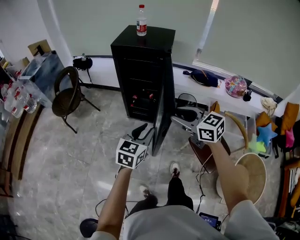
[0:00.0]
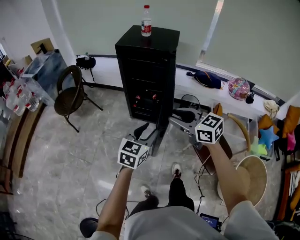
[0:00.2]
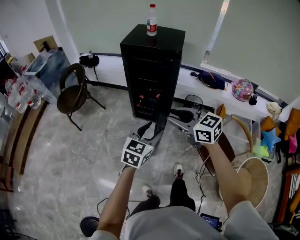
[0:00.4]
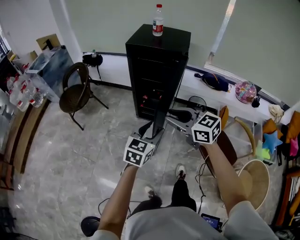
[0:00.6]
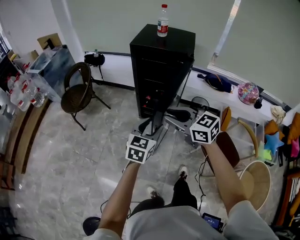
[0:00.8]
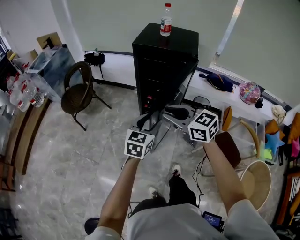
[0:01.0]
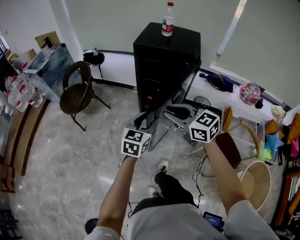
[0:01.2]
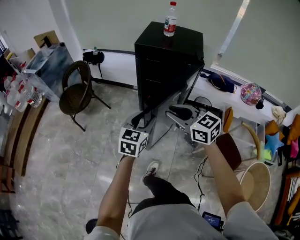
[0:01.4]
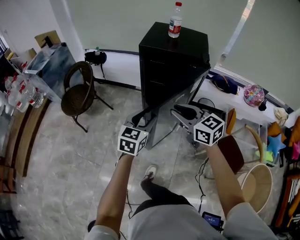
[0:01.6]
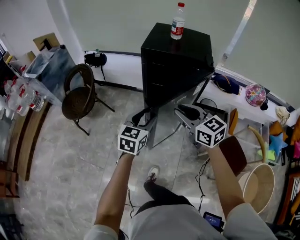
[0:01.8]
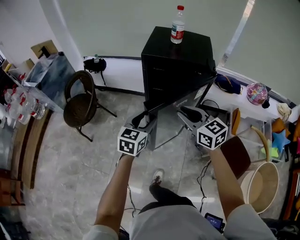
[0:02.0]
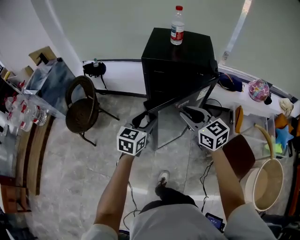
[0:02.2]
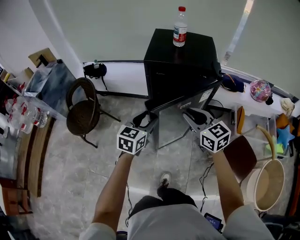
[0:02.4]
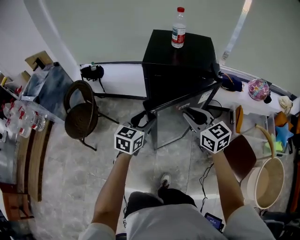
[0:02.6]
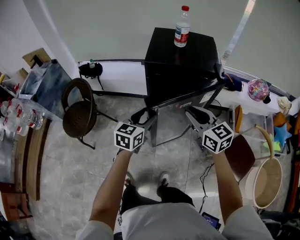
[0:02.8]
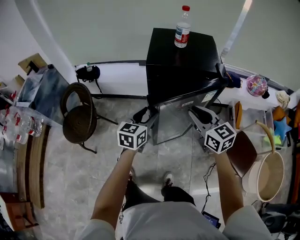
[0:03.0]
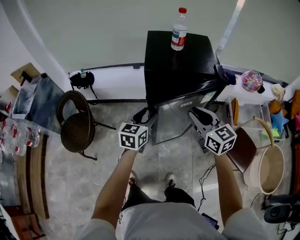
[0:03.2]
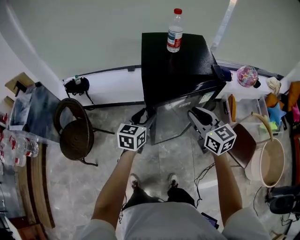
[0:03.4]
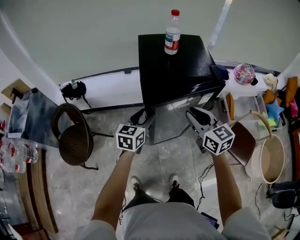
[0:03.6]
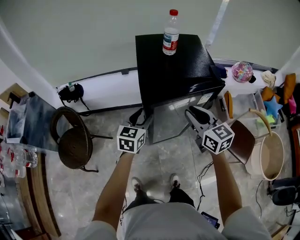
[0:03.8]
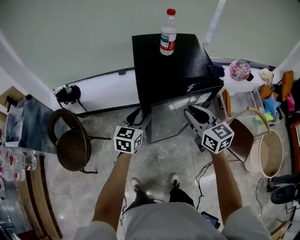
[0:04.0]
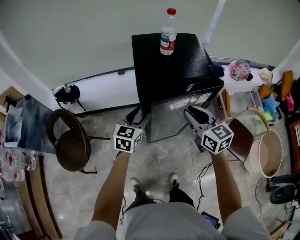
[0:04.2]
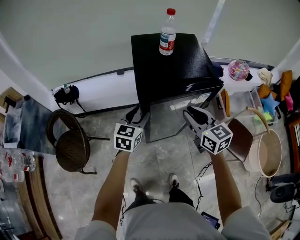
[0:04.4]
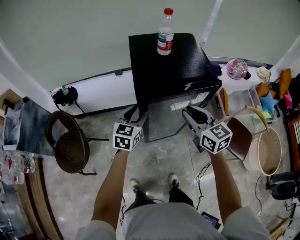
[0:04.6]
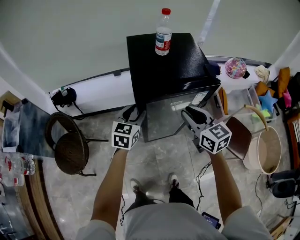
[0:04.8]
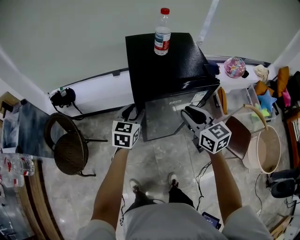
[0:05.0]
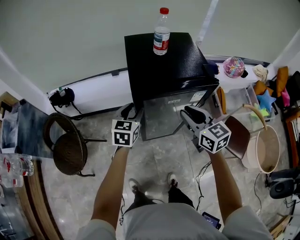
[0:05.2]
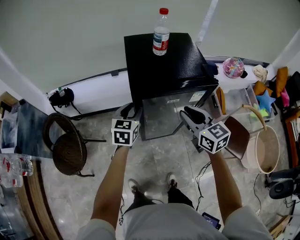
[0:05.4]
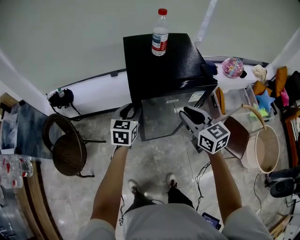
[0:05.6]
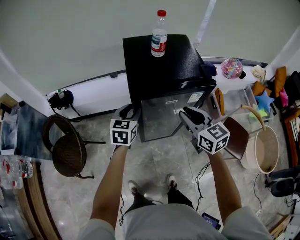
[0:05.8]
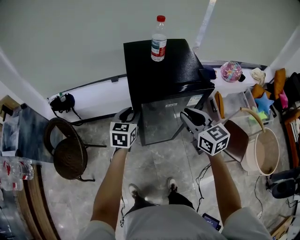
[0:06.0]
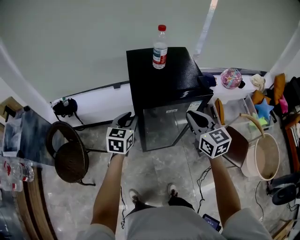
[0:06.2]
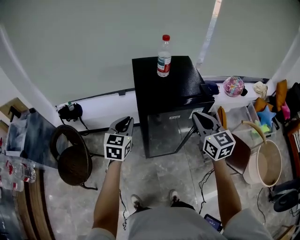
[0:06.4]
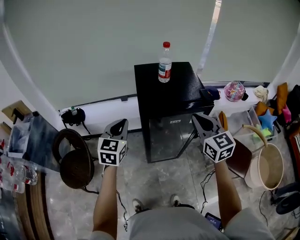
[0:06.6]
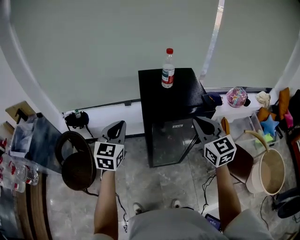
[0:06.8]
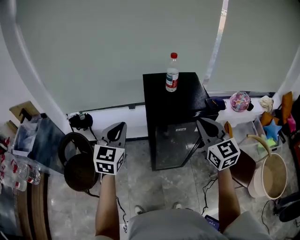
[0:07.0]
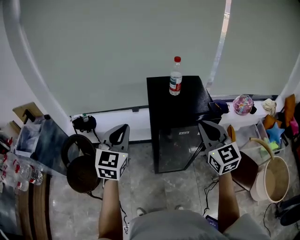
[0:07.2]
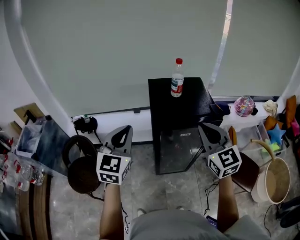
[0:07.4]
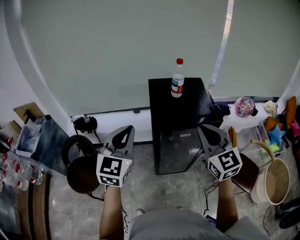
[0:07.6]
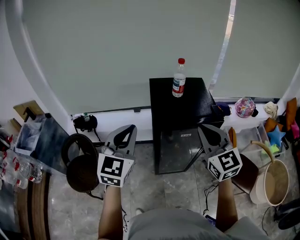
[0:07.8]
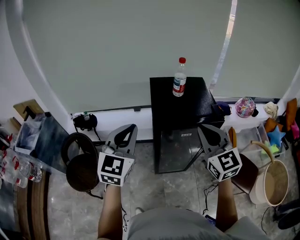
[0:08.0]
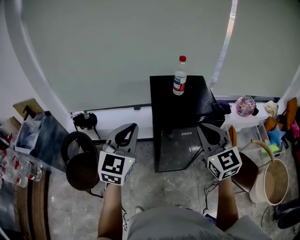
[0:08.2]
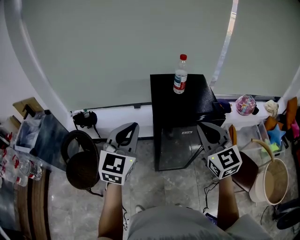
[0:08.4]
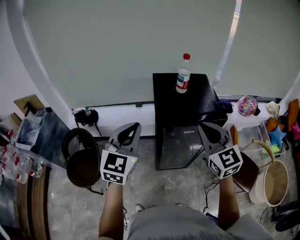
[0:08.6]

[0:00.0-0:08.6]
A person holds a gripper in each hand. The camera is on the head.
0:00.0 to 0:01.4: The right gripper travels to the left and forward by some 20 cm; the left gripper travels forward and to the left by some 20 cm.
0:01.4 to 0:02.8: The left gripper travels forward and to the left by about 20 cm, while the right gripper travels forward by approximately 15 cm, and turns by some 20 degrees.
0:02.8 to 0:04.4: The right gripper is displaced forward by roughly 5 cm. Meanwhile the left gripper moves forward, roughly 15 cm.
0:04.4 to 0:05.8: The grippers make only small movements.
0:05.8 to 0:07.2: The right gripper travels upward by about 15 cm, and turns by about 20 degrees. The left gripper heads upward and to the left, covering some 25 cm, rotates approximately 30 degrees, and closes its fingers.
0:07.2 to 0:08.6: There are only small adjustments of the grippers.

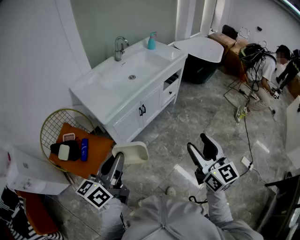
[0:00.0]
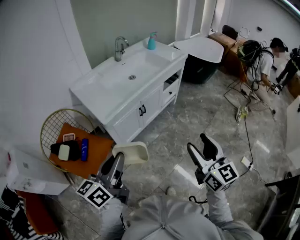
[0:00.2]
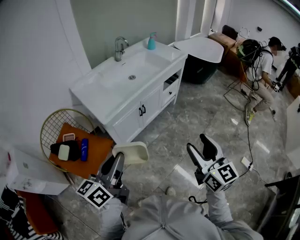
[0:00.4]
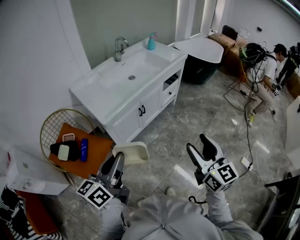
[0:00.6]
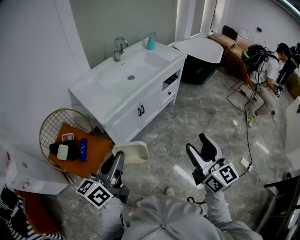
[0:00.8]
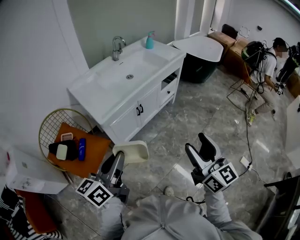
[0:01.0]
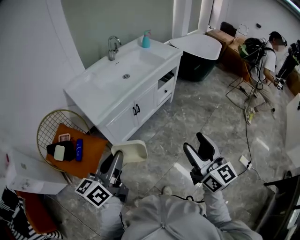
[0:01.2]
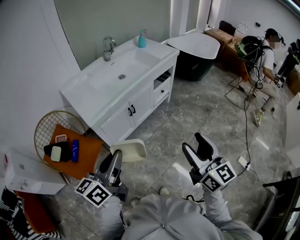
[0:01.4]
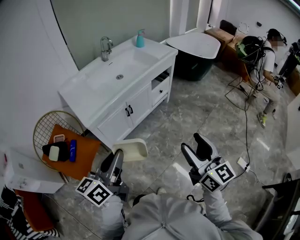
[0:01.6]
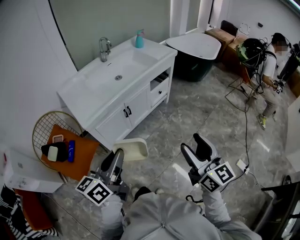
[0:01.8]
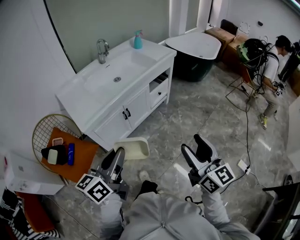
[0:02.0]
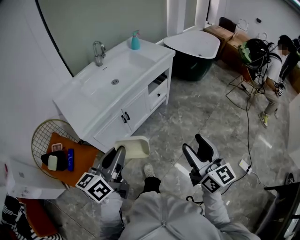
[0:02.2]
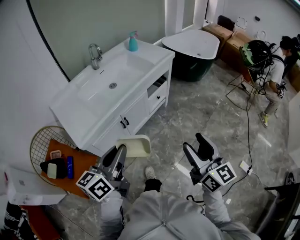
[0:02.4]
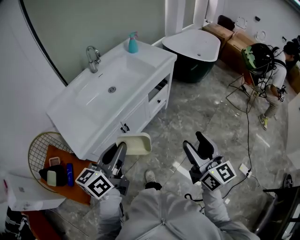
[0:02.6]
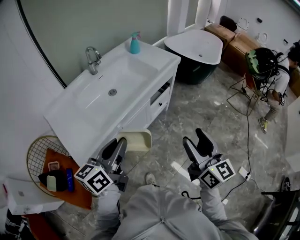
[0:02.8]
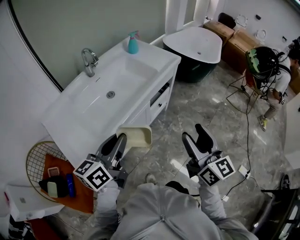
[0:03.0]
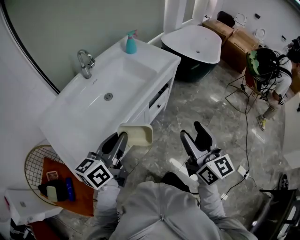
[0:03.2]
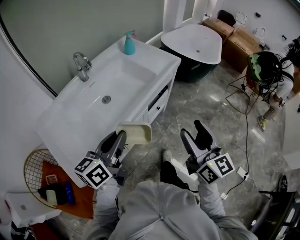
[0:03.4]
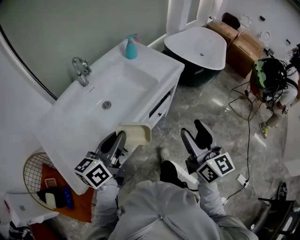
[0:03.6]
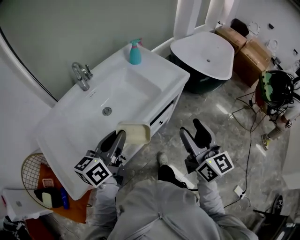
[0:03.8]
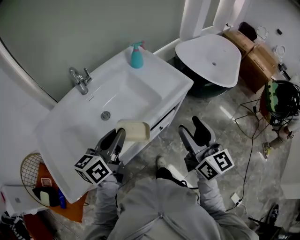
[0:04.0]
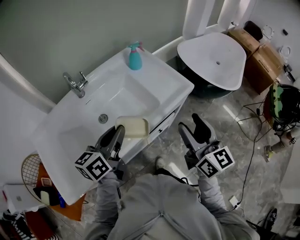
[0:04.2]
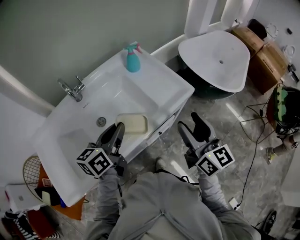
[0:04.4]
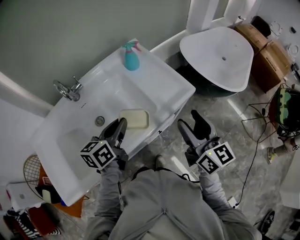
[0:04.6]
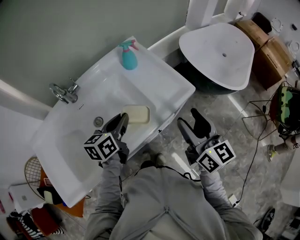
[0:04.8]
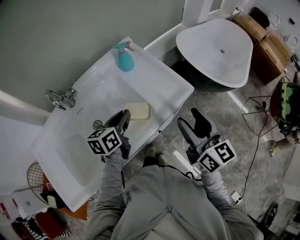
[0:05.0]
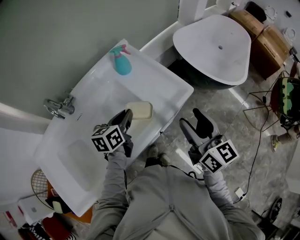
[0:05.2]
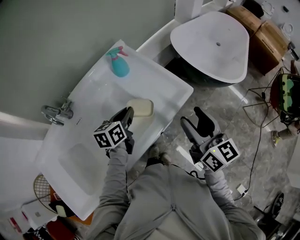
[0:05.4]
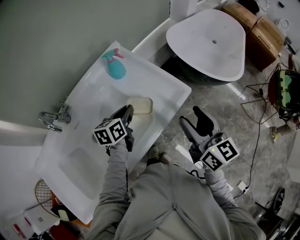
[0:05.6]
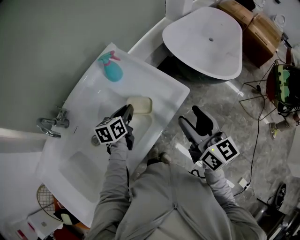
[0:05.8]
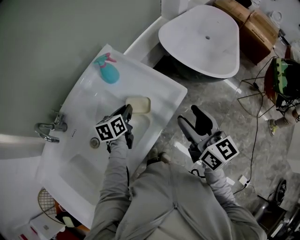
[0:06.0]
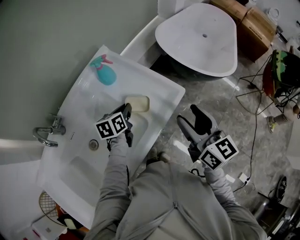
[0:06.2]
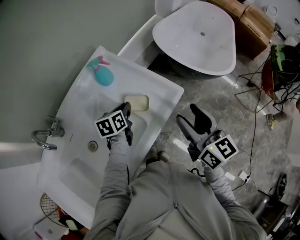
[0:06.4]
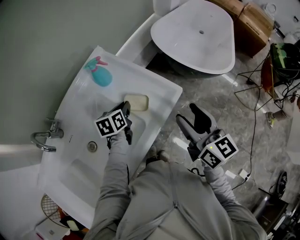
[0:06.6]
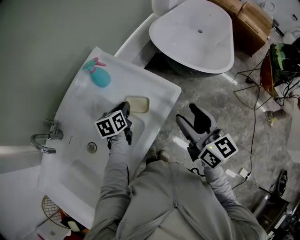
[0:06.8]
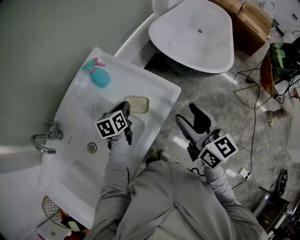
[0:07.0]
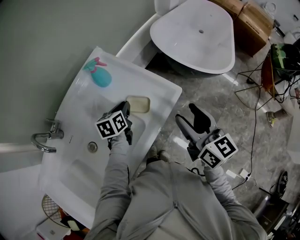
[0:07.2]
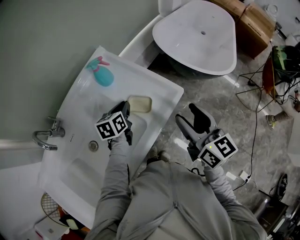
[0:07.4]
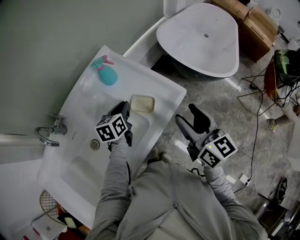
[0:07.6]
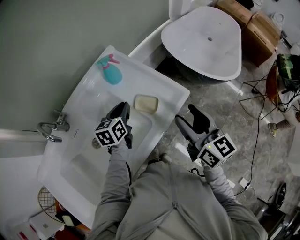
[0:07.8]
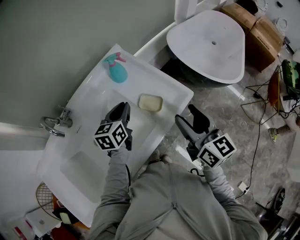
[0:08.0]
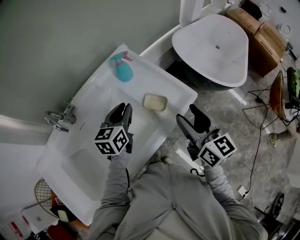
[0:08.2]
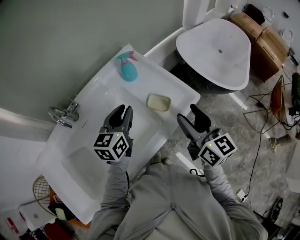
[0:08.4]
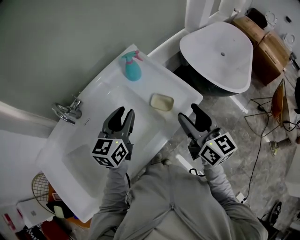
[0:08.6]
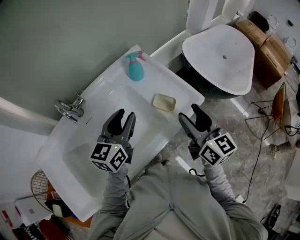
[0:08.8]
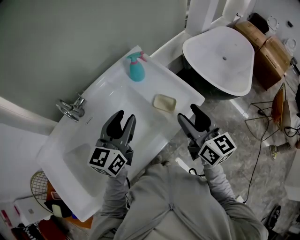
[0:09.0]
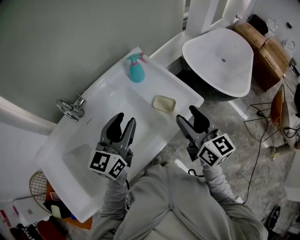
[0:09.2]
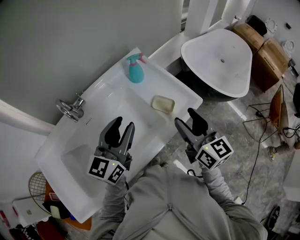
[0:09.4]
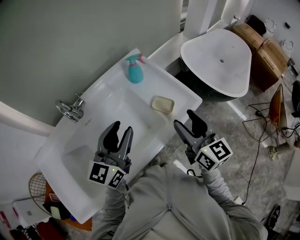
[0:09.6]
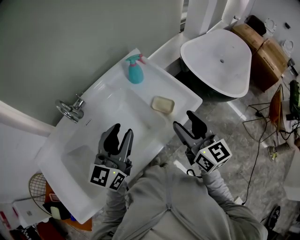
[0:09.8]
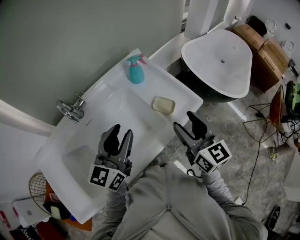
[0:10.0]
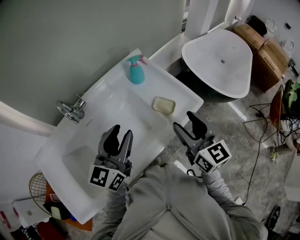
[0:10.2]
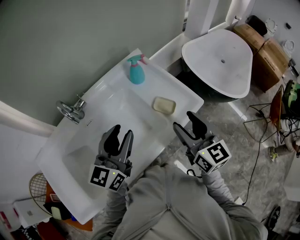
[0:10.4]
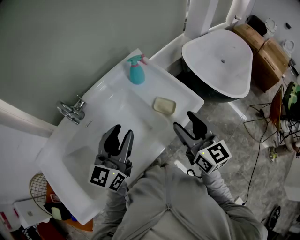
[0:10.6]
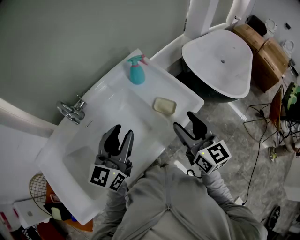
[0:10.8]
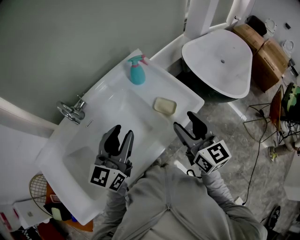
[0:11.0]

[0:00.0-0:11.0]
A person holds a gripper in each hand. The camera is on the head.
0:00.0 to 0:01.6: The two grippers go some 10 cm to the right.
0:01.6 to 0:03.2: Both grippers move forward, roughly 35 cm.
0:03.2 to 0:04.8: The grippers both shift forward by about 40 cm. The left gripper turns by roughly 20 degrees.
0:04.8 to 0:06.2: The left gripper is displaced forward and downward by some 20 cm. Meanwhile the right gripper goes about 5 cm forward.
0:06.2 to 0:07.8: The left gripper heads upward, covering some 5 cm.
0:07.8 to 0:09.4: The left gripper shifts roughly 20 cm upward and backward, and swivels roughly 30 degrees. Meanwhile the right gripper shifts approximately 10 cm to the left.
0:09.4 to 0:11.0: The grippers make only small movements.

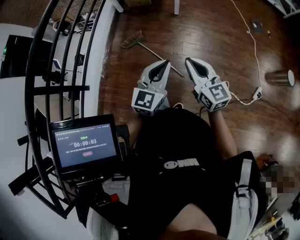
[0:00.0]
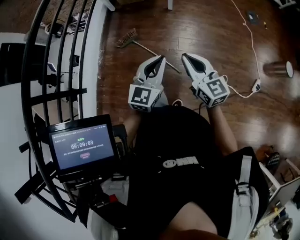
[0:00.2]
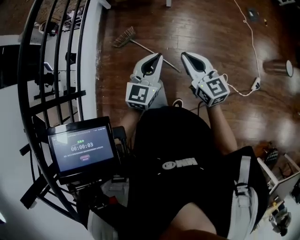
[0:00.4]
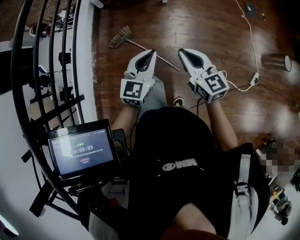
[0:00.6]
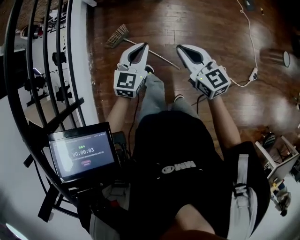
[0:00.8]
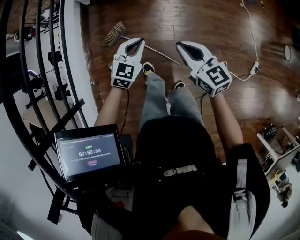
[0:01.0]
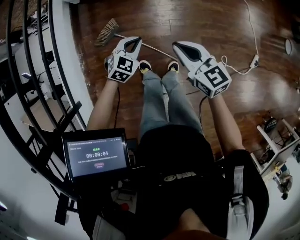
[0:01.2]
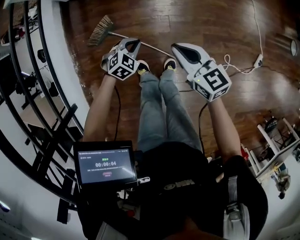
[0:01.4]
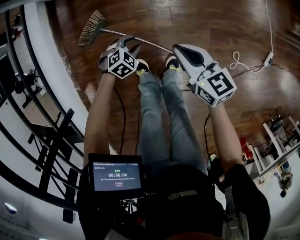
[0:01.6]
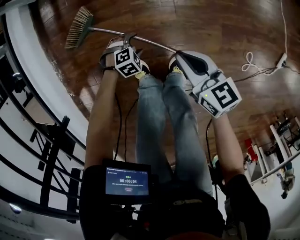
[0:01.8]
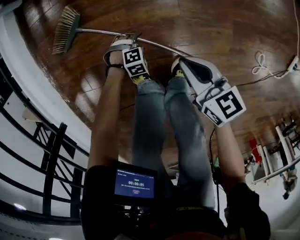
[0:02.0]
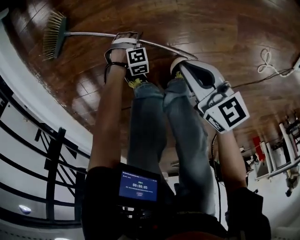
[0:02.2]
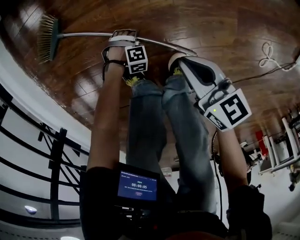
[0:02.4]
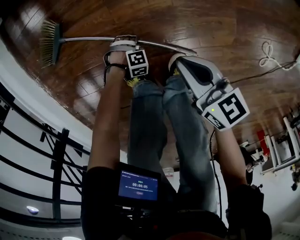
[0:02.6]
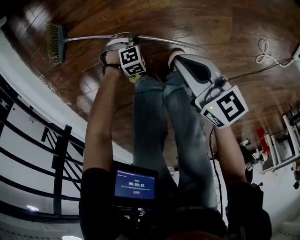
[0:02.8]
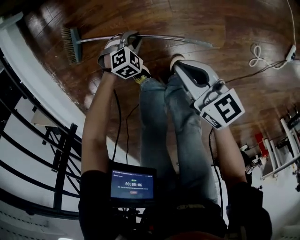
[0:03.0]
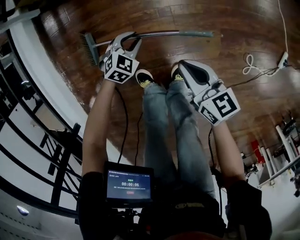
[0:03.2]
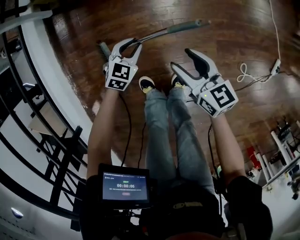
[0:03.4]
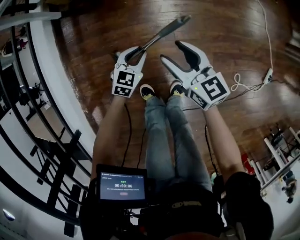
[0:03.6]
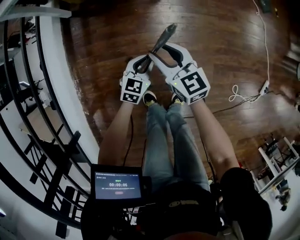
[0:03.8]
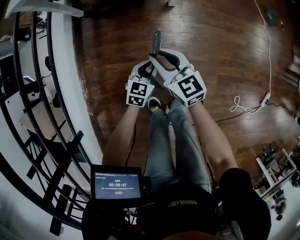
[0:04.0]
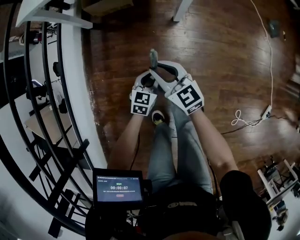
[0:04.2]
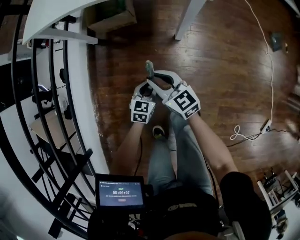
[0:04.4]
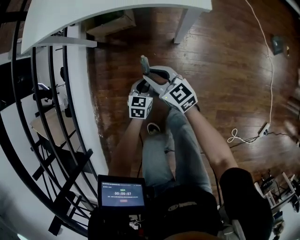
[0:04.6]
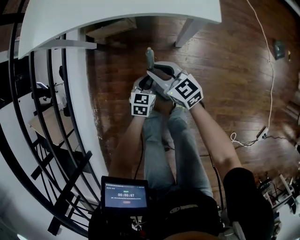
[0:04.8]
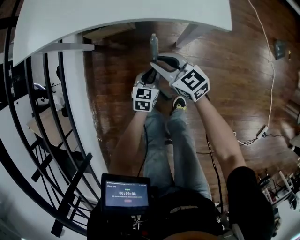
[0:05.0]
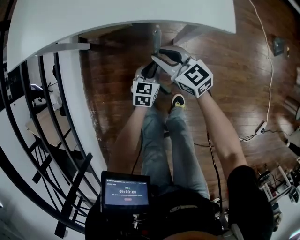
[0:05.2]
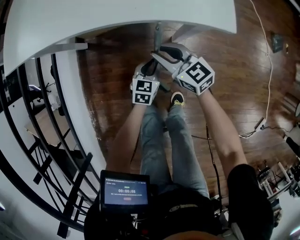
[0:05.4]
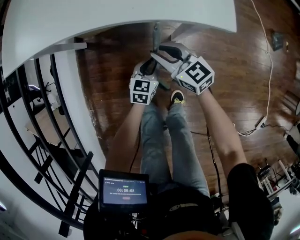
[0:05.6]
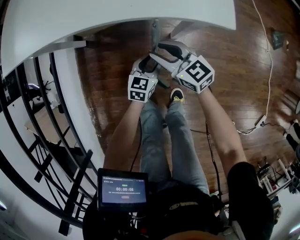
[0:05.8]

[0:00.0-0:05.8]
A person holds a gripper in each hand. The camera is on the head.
0:00.0 to 0:01.4: The left gripper travels downward by about 40 cm, and angles its fingers downward, by about 30 degrees. The right gripper goes about 20 cm downward.
0:01.4 to 0:02.8: The grippers both shift downward by approximately 40 cm. The left gripper changes its angle by approximately 40 degrees, and opens and closes again; the right gripper changes its angle by about 20 degrees.
0:02.8 to 0:04.4: The left gripper shifts roughly 40 cm upward, and rolls counterclockwise, seen from behind, by some 70 degrees. The right gripper moves roughly 50 cm, changes its angle by some 40 degrees, and opens and closes again.
0:04.4 to 0:05.8: The right gripper goes about 20 cm forward. The left gripper is displaced forward and to the right by some 20 cm.
